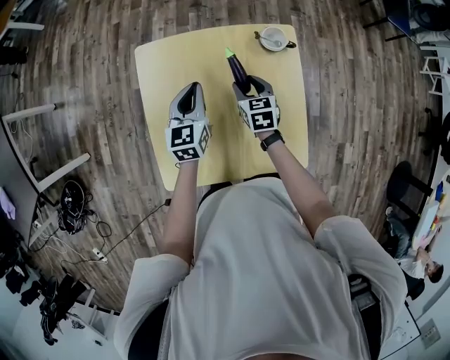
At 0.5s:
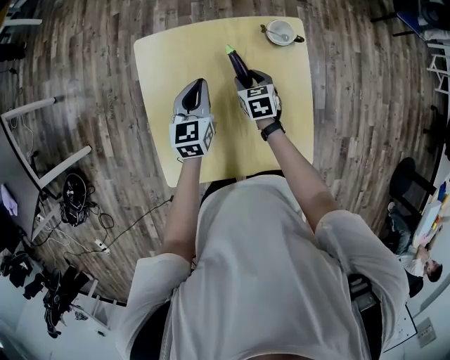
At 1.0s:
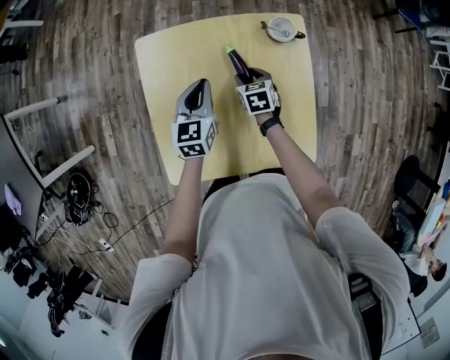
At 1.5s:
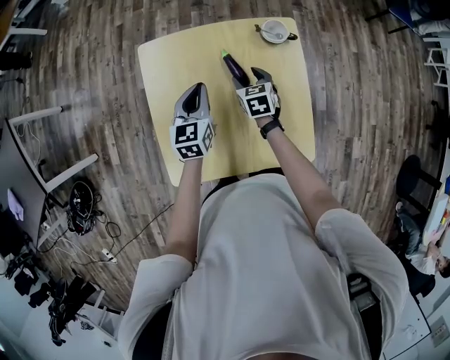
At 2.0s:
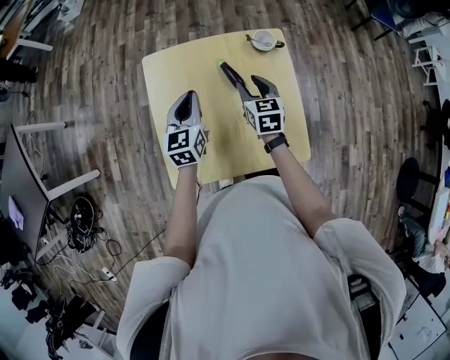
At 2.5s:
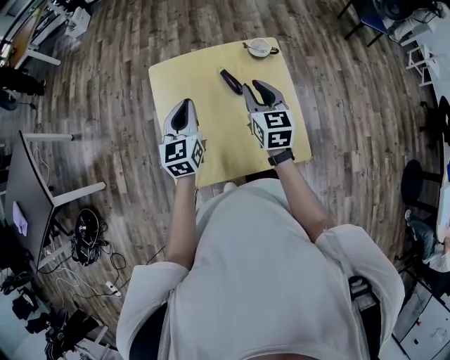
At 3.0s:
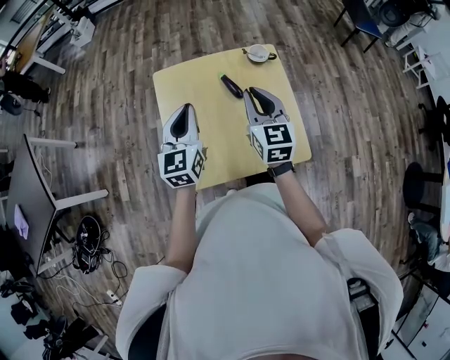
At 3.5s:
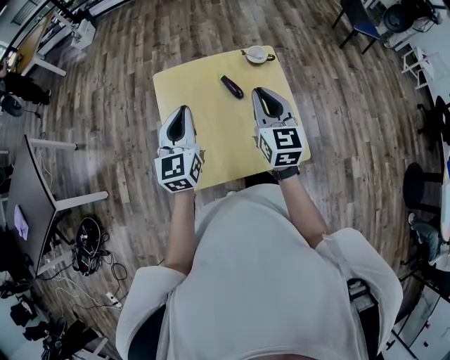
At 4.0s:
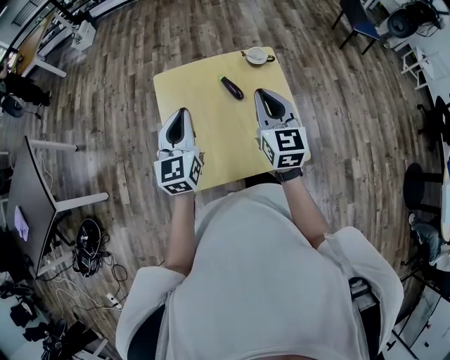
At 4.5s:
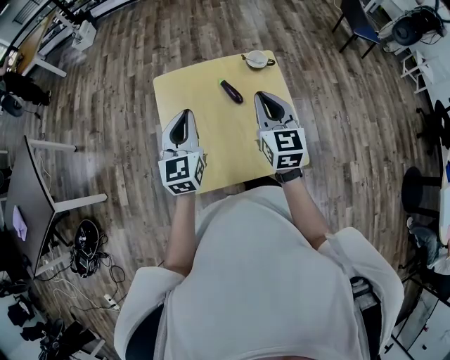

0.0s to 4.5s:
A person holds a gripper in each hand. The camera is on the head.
0.0s to 2.0s: The left gripper shifts by about 5 cm; the right gripper moves upward, some 10 cm.
2.0s to 4.5s: Both grippers travel together upward and backward, approximately 20 cm. The right gripper changes its angle by some 20 degrees, and closes.

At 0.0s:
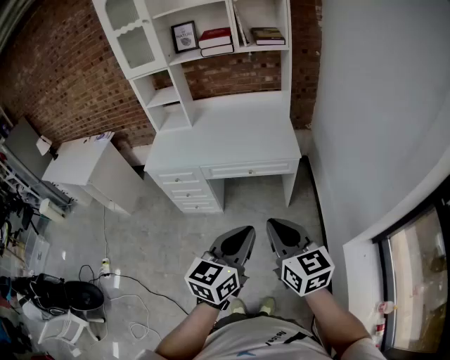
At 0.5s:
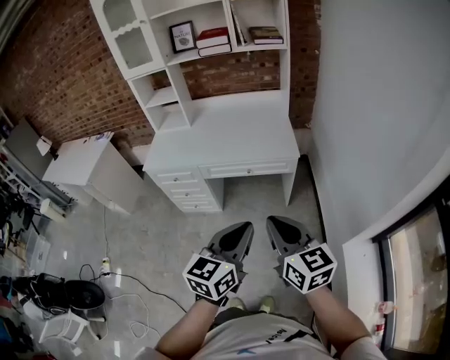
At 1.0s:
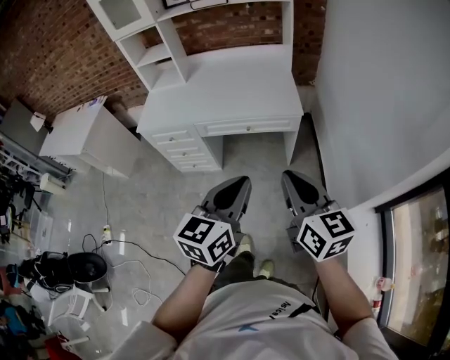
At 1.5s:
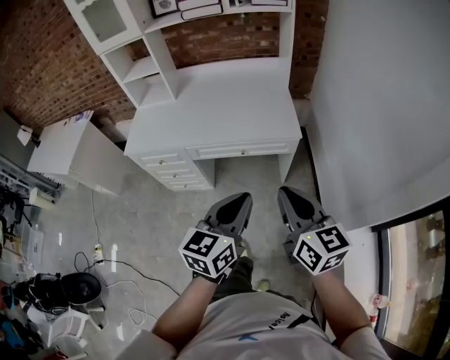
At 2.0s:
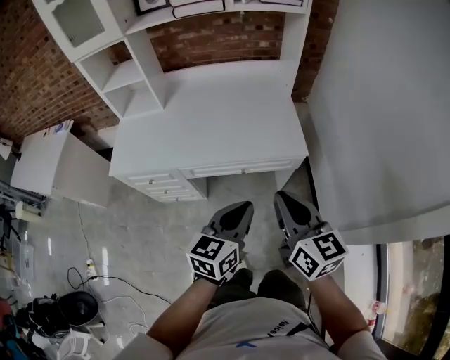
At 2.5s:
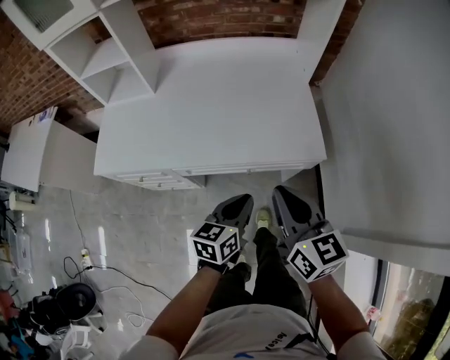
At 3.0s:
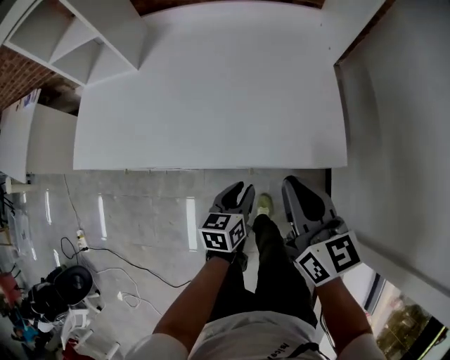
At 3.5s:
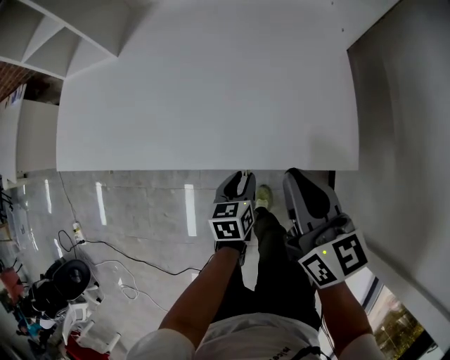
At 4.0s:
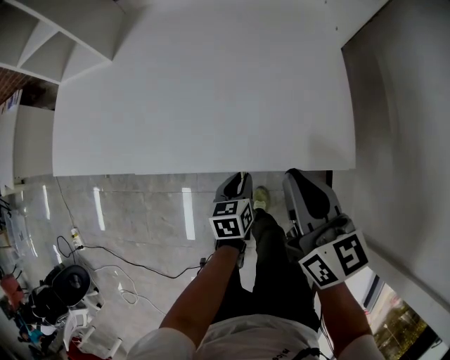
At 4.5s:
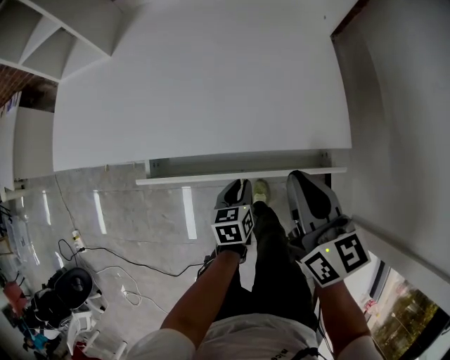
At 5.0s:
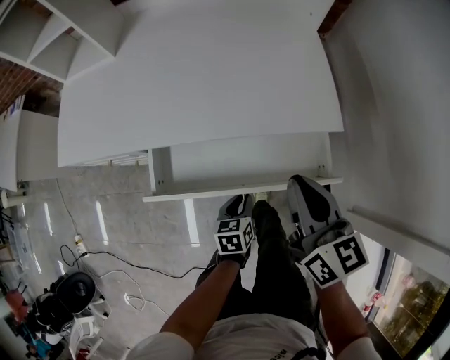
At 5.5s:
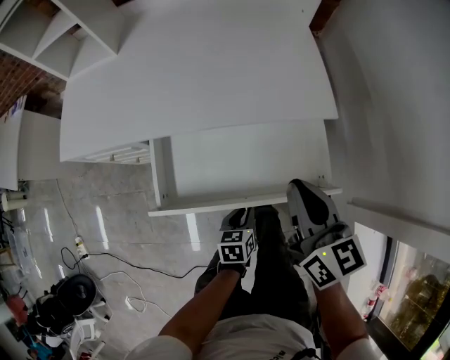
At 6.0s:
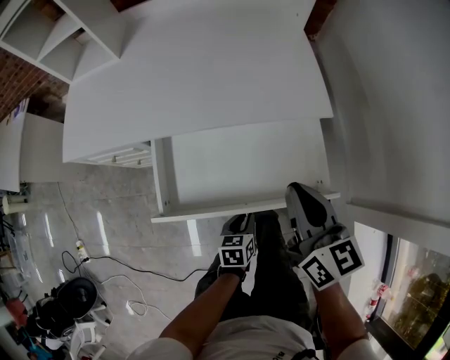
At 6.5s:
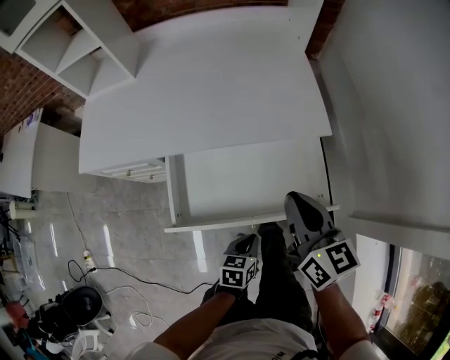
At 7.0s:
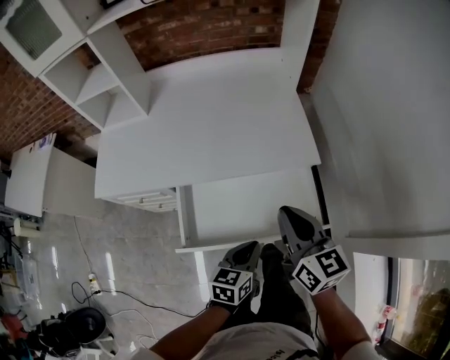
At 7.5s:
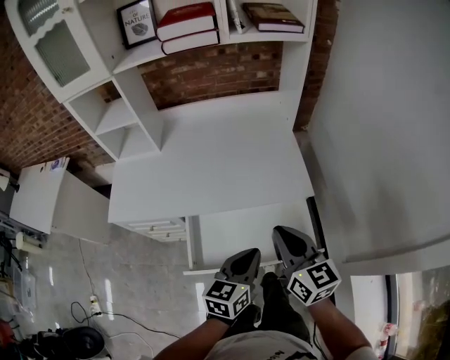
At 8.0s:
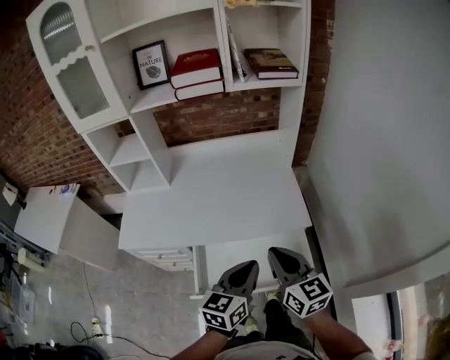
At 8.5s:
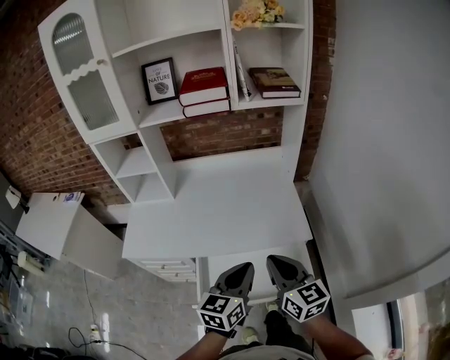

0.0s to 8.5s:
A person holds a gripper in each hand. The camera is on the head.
0.0s to 2.0s: Both grippers travel together forward, some 30 cm.
2.0s to 4.0s: The left gripper heads downward and forward, covering about 50 cm, and changes its angle by roughly 40 degrees, while the right gripper goes about 35 cm forward and downward.
4.0s to 6.5s: The left gripper goes some 30 cm backward, and turns by approximately 20 degrees. Meanwhile the right gripper shifts approximately 20 cm backward.
6.5s to 8.5s: The left gripper is displaced upward by some 40 cm, and angles its fingers upward, by some 40 degrees; the right gripper travels upward by about 20 cm.

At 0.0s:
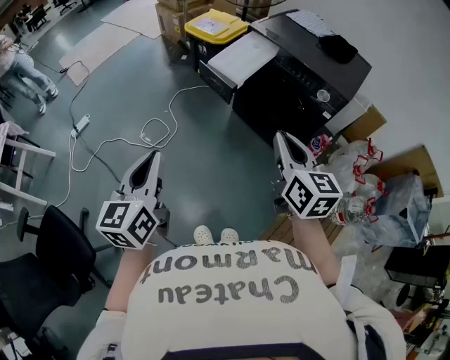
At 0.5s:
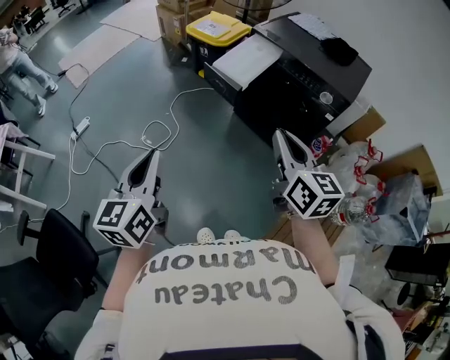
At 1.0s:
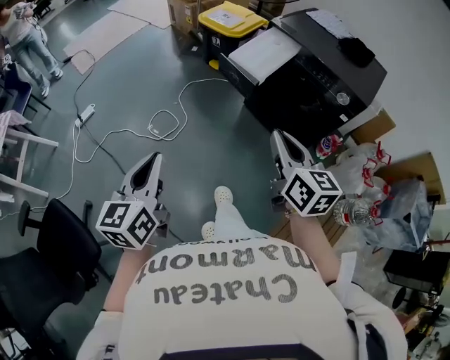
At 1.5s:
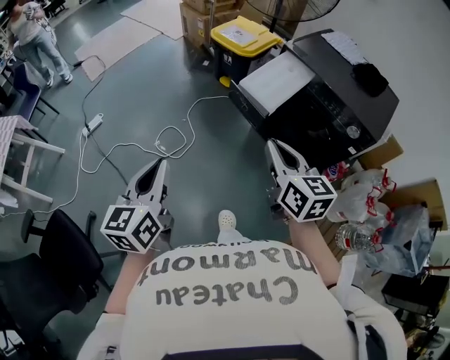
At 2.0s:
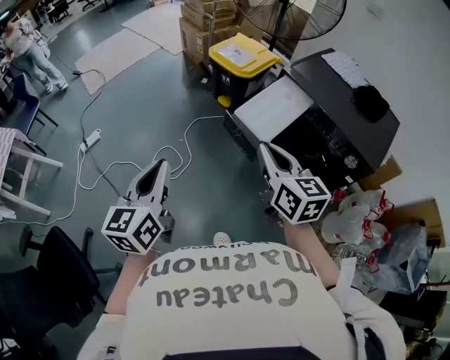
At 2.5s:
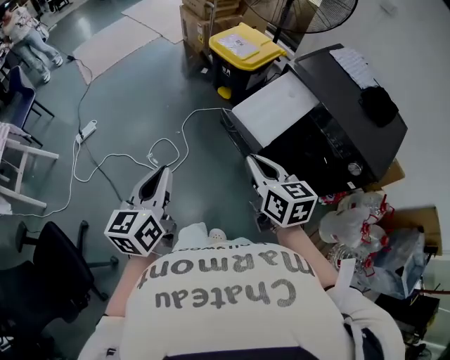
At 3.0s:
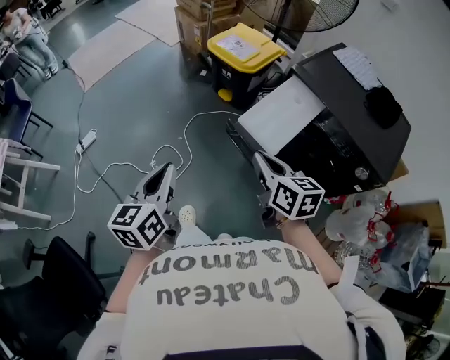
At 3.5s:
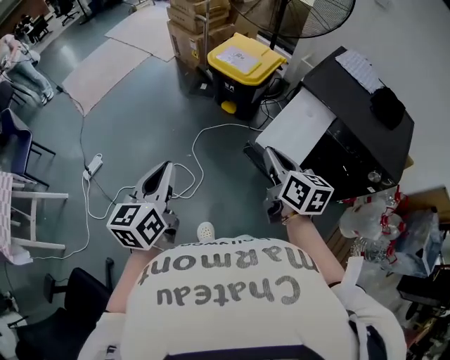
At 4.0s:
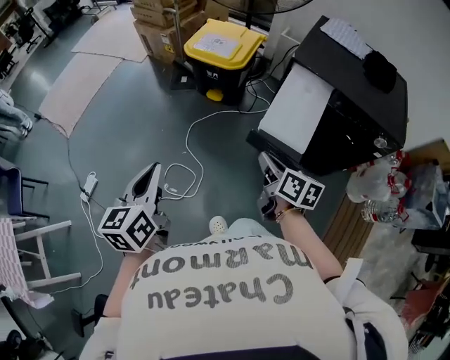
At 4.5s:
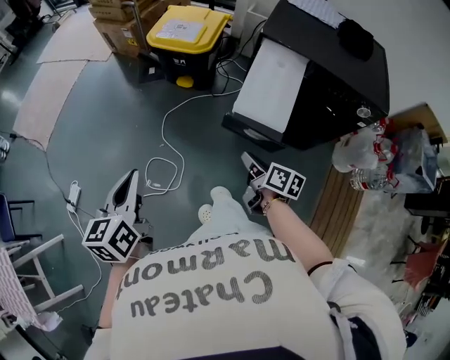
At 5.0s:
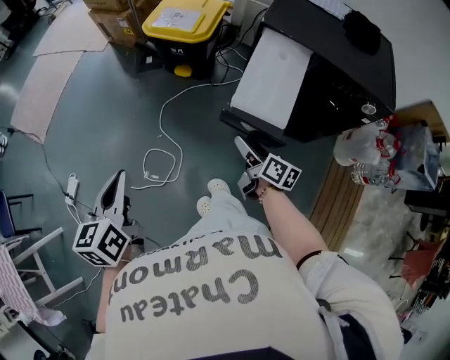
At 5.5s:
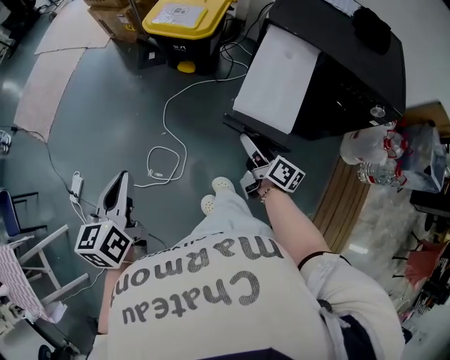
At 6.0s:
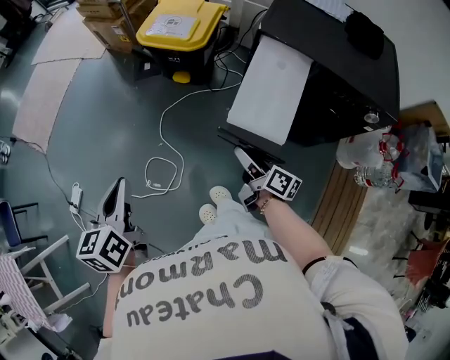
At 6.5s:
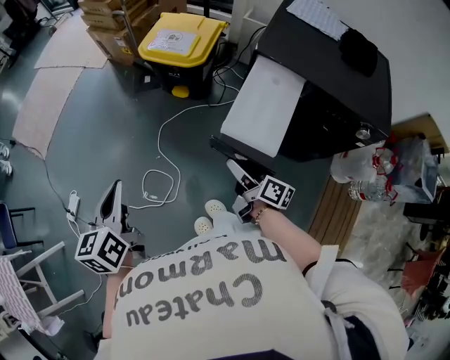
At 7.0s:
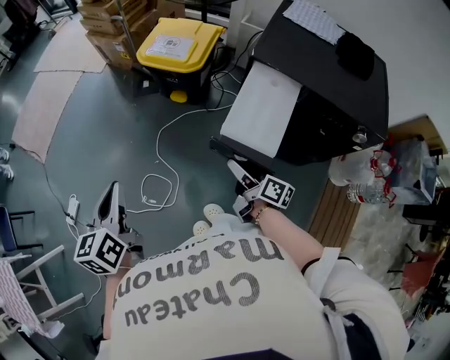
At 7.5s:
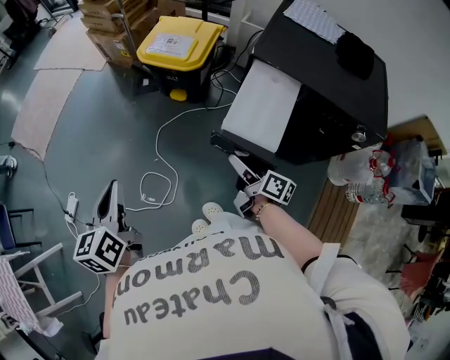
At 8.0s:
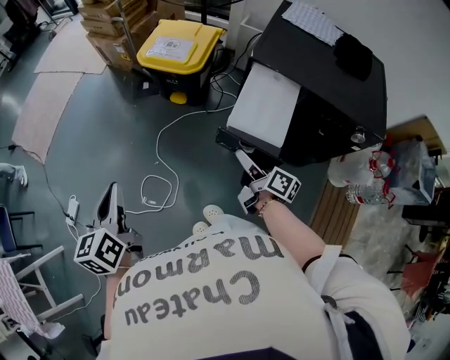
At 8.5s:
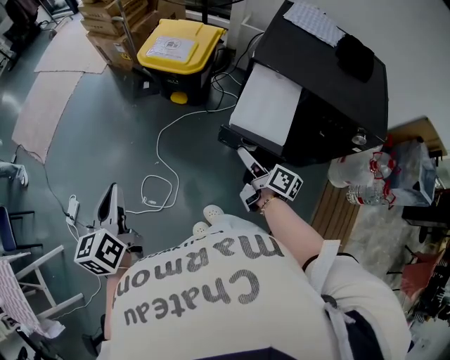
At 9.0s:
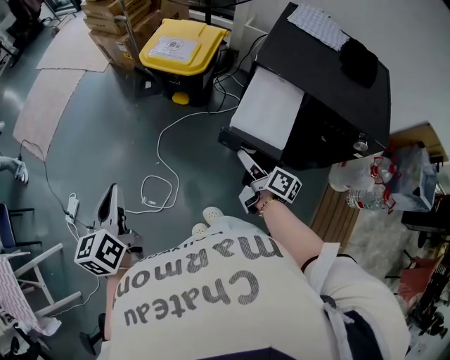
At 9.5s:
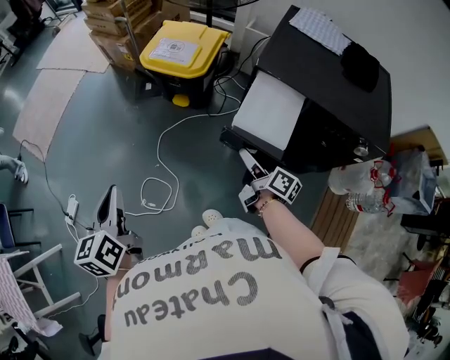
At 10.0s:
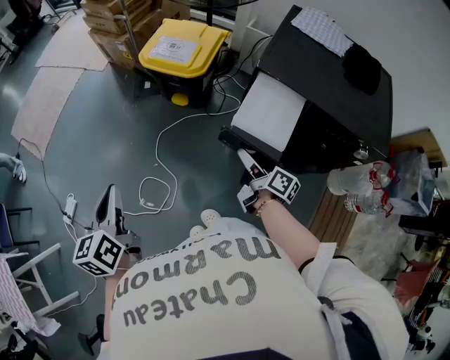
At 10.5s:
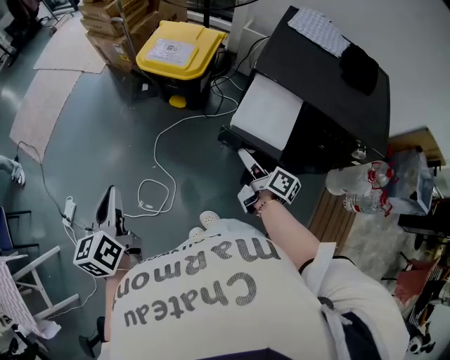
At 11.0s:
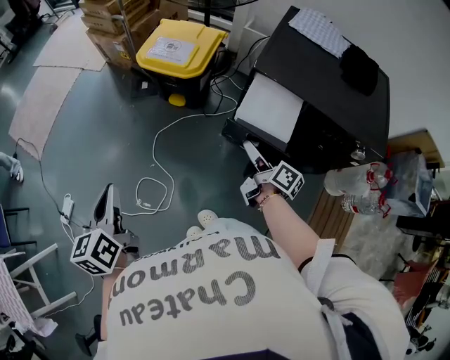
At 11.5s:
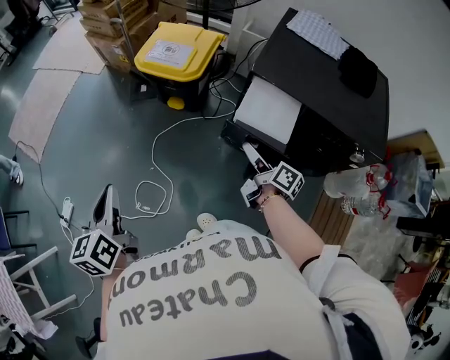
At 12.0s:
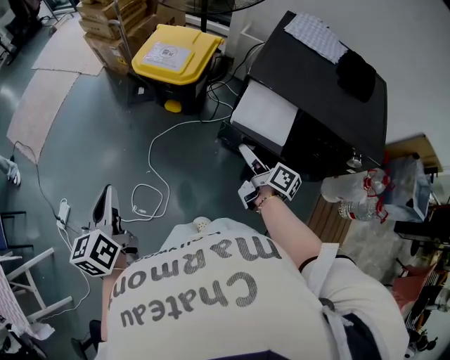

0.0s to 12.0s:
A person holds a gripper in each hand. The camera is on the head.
0.0s to 2.0s: The left gripper travels forward by roughly 20 cm. The right gripper travels forward and to the left by approximately 25 cm.
2.0s to 4.0s: The right gripper heads downward, forward and to the left, covering some 25 cm, and swivels roughly 40 degrees, while the left gripper is displaced forward and to the left by about 25 cm.
4.0s to 6.0s: The left gripper is displaced forward by approximately 5 cm. Meanwhile the right gripper is displaced downward by roughly 10 cm, swivels some 20 degrees, and opens its fingers.
6.0s to 8.0s: The right gripper moves some 5 cm.
8.0s to 10.0s: The right gripper shifts by approximately 5 cm.
10.0s to 12.0s: The right gripper moves some 5 cm.

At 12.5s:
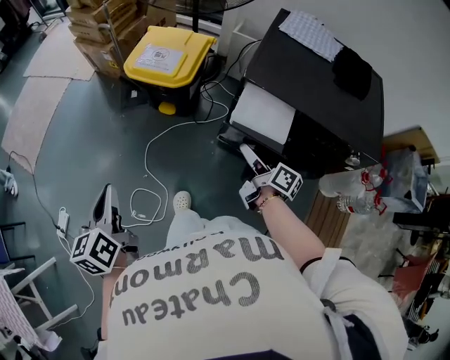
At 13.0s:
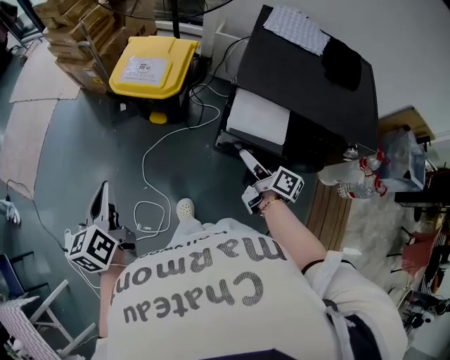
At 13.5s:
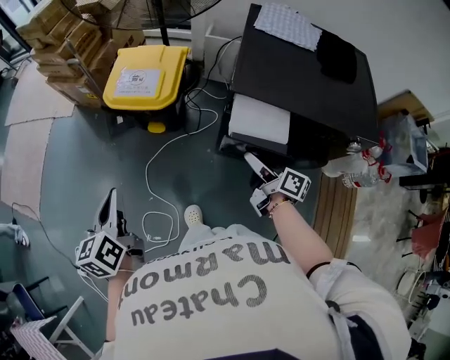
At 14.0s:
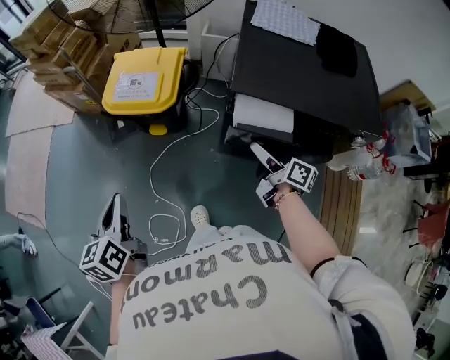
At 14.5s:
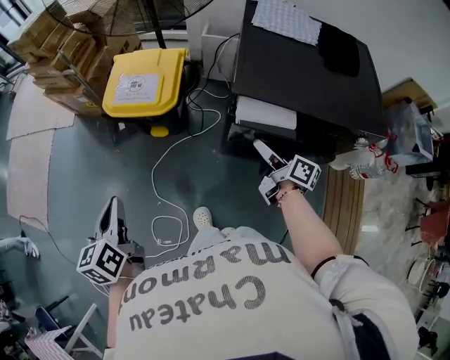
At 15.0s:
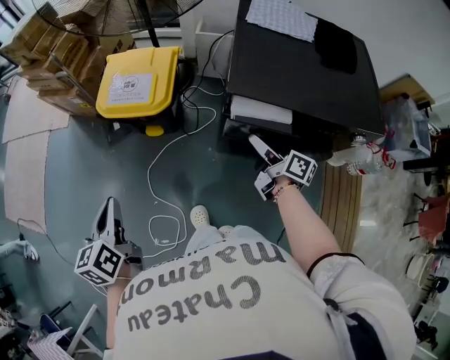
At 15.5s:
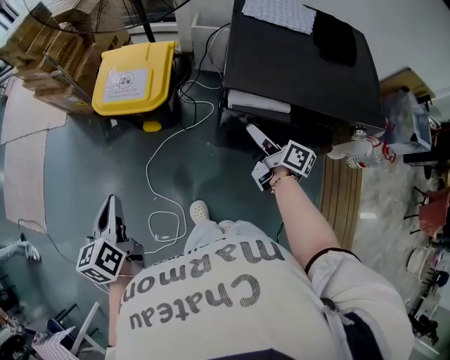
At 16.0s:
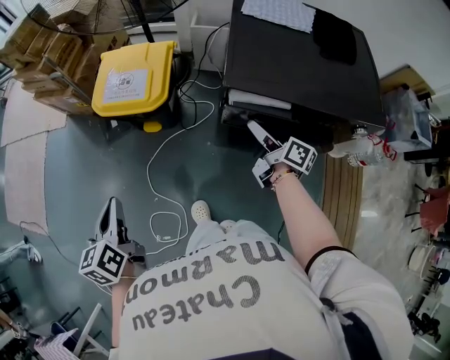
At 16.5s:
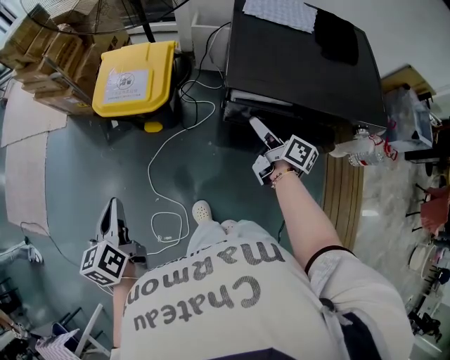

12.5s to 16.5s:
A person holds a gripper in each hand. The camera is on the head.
12.5s to 14.5s: The right gripper shifts some 5 cm forward. The left gripper shifts approximately 15 cm forward.
14.5s to 16.5s: The right gripper shifts about 5 cm forward.
